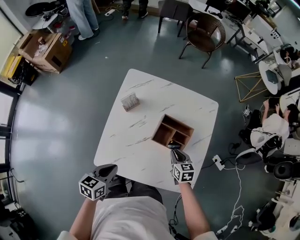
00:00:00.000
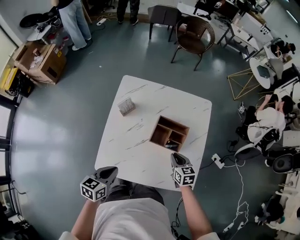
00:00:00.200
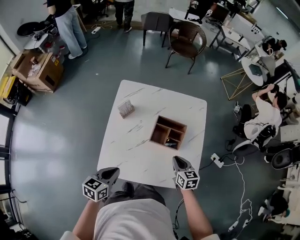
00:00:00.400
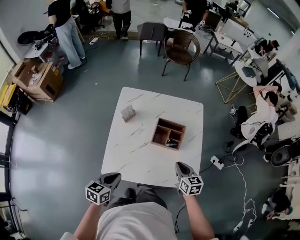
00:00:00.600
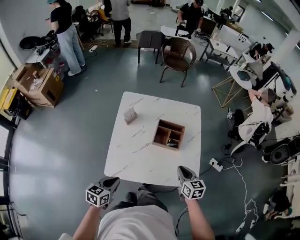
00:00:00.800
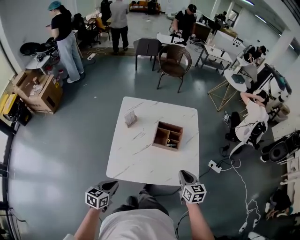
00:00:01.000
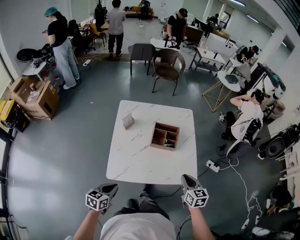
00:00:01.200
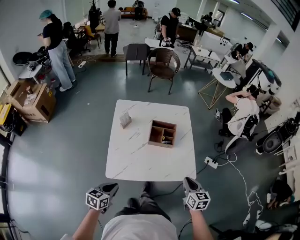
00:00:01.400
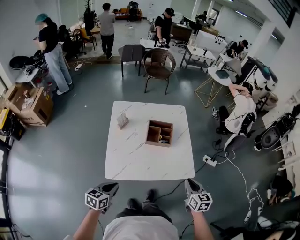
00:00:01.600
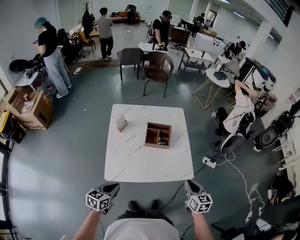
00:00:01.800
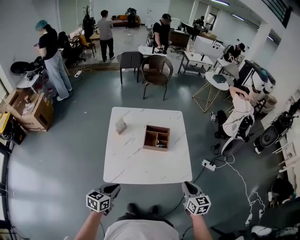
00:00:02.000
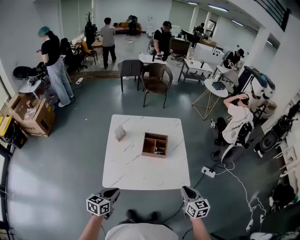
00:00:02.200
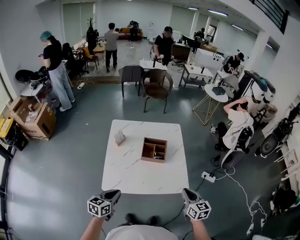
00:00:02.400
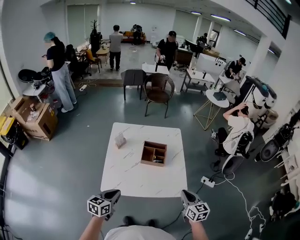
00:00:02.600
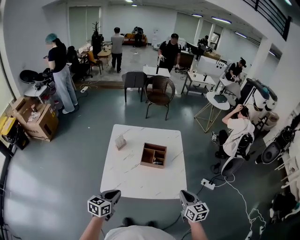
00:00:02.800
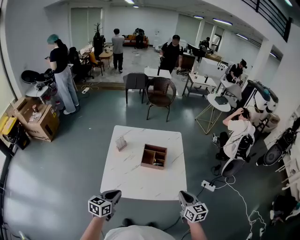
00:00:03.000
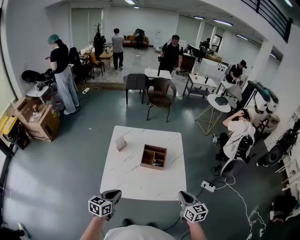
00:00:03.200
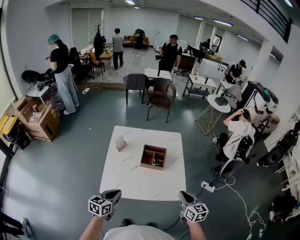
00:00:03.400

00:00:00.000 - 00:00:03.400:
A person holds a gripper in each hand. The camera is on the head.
00:00:00.000 - 00:00:01.600: The right gripper goes about 35 cm backward and upward, and turns by approximately 30 degrees. The left gripper moves backward, roughly 15 cm.
00:00:01.600 - 00:00:03.400: The left gripper goes about 10 cm to the right and upward; the right gripper ends up approximately 5 cm from where it was.

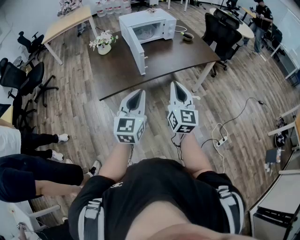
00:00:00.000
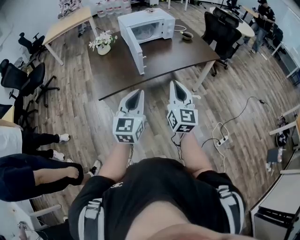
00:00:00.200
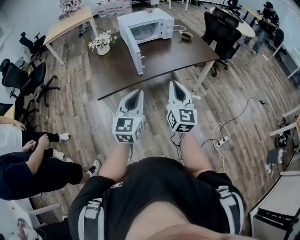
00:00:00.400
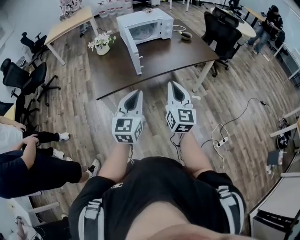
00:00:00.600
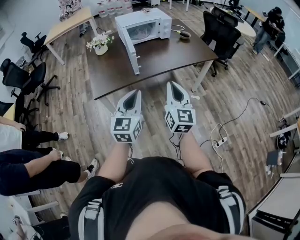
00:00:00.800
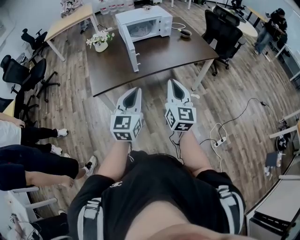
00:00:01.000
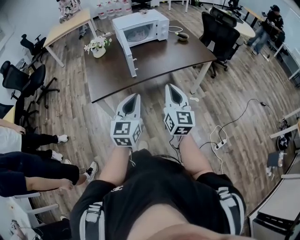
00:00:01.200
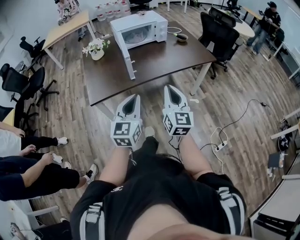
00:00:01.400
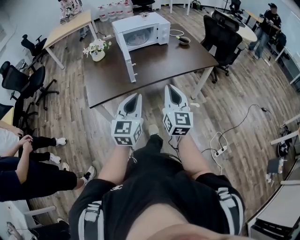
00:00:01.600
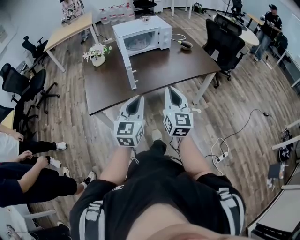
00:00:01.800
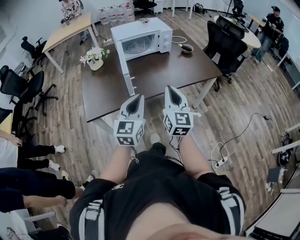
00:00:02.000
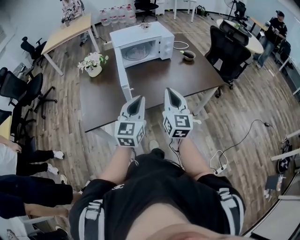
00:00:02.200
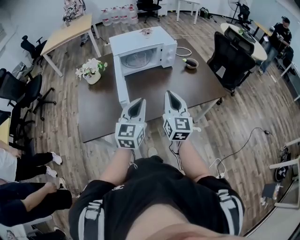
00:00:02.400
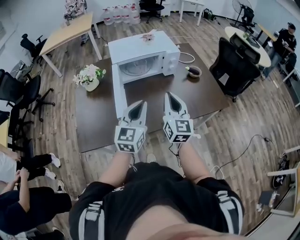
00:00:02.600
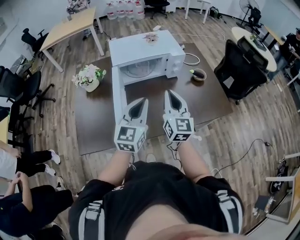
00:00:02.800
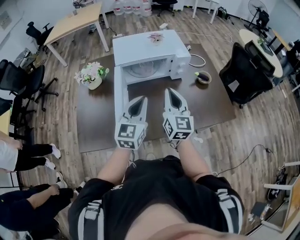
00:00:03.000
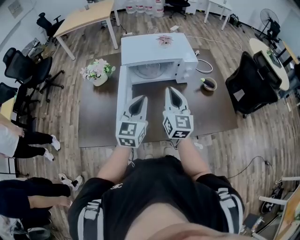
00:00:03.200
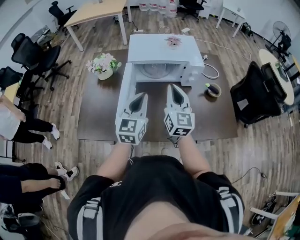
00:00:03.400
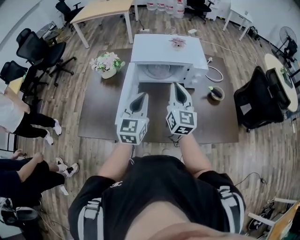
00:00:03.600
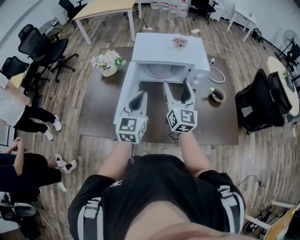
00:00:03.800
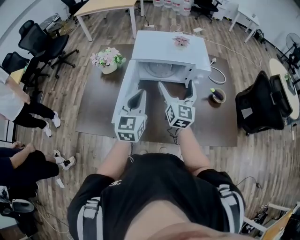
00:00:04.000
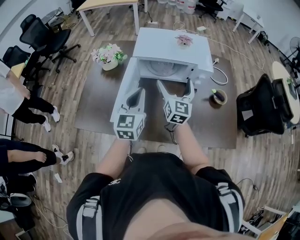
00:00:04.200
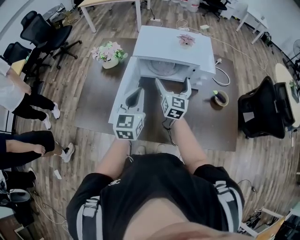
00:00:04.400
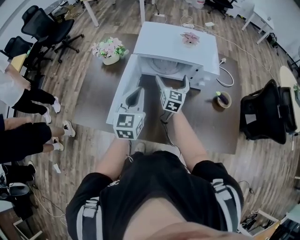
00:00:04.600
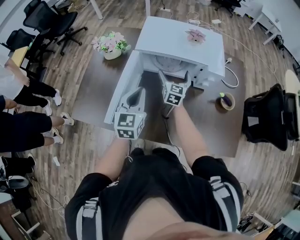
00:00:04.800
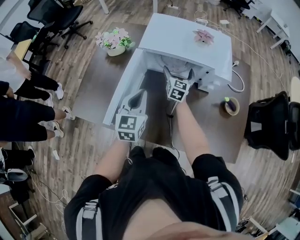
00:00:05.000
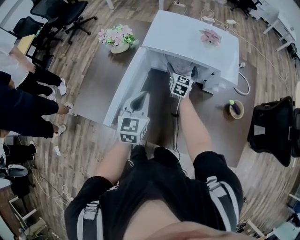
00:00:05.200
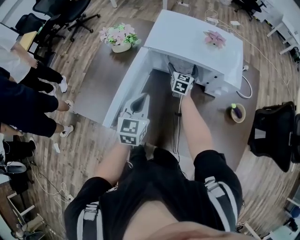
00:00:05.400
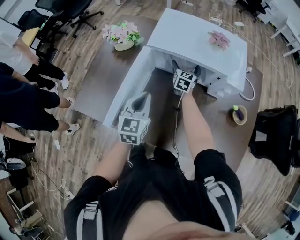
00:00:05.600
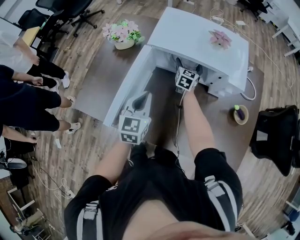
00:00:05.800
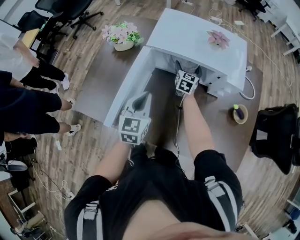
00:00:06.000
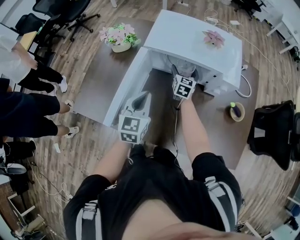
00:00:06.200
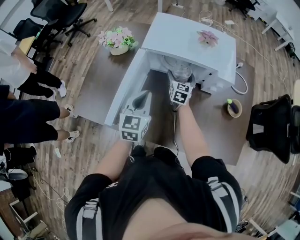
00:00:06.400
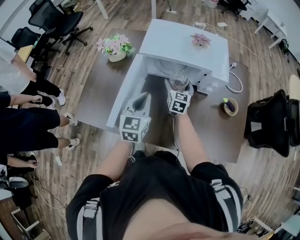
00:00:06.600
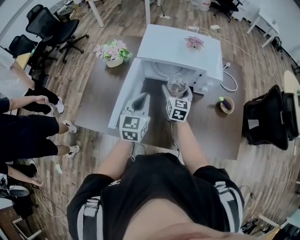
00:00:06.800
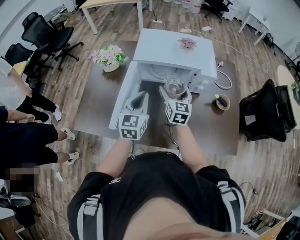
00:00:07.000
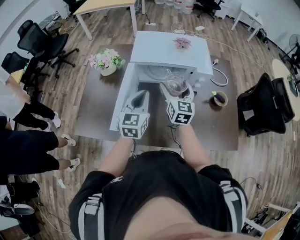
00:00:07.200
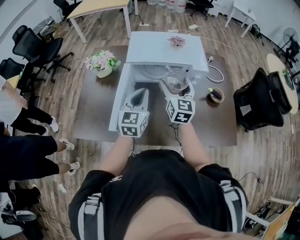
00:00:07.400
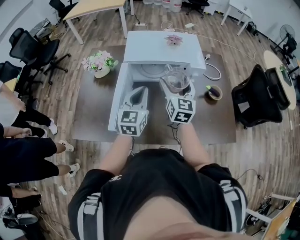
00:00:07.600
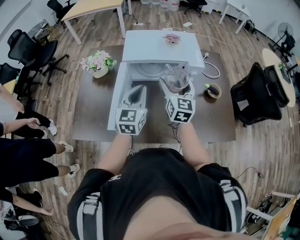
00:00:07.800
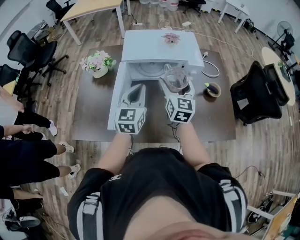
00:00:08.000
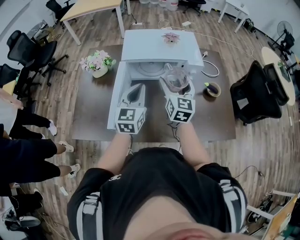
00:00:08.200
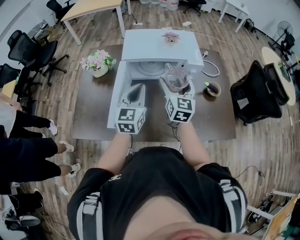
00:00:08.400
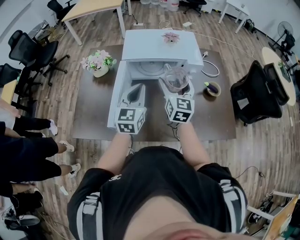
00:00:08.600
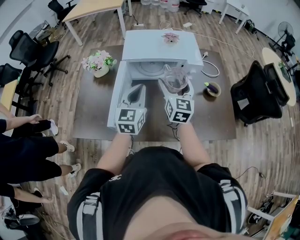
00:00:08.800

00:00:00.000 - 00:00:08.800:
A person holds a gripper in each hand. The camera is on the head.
00:00:00.000 - 00:00:01.400: The two grippers go about 10 cm to the right.
00:00:01.400 - 00:00:03.000: The pair of grippers is taken forward, about 50 cm.
00:00:03.000 - 00:00:04.400: The right gripper shifts about 20 cm forward and downward, and opens up. Meanwhile the left gripper moves forward, some 10 cm, and turns by about 20 degrees.
00:00:04.400 - 00:00:05.800: The right gripper travels forward and downward by roughly 30 cm; the left gripper goes roughly 10 cm downward and forward.
00:00:05.800 - 00:00:07.400: The right gripper goes about 35 cm backward and upward. The left gripper is displaced upward by about 10 cm.
00:00:07.400 - 00:00:08.800: The grippers stay close to where they were, moving slightly.

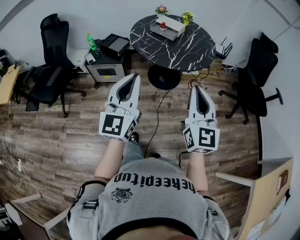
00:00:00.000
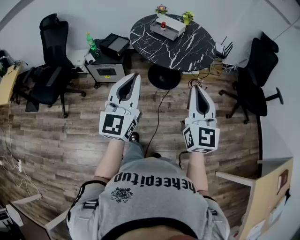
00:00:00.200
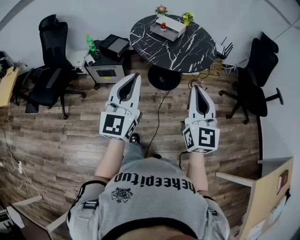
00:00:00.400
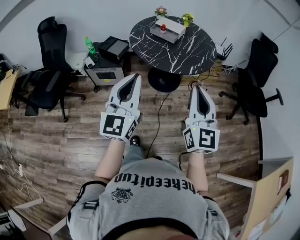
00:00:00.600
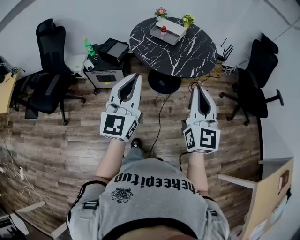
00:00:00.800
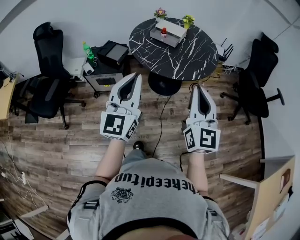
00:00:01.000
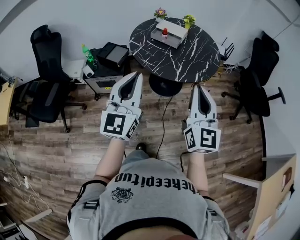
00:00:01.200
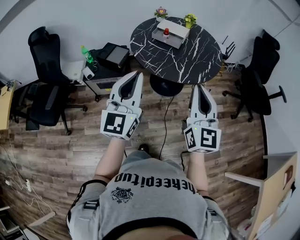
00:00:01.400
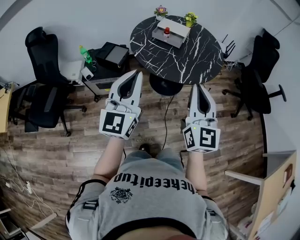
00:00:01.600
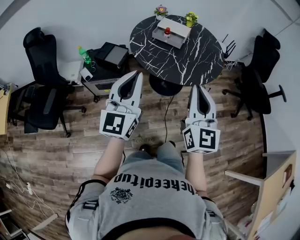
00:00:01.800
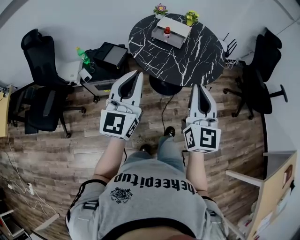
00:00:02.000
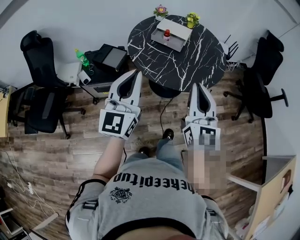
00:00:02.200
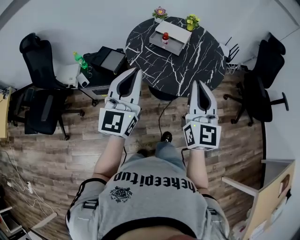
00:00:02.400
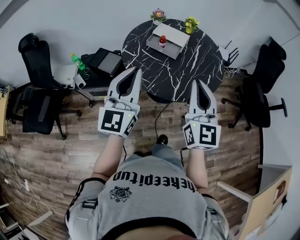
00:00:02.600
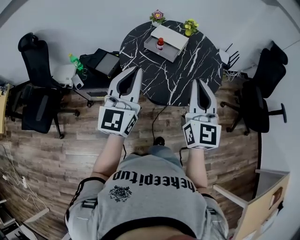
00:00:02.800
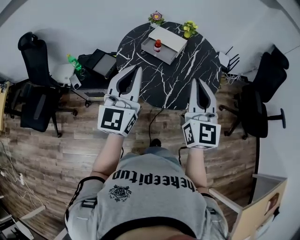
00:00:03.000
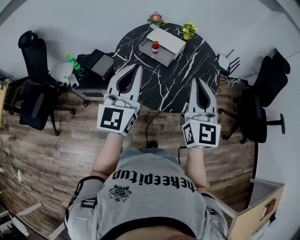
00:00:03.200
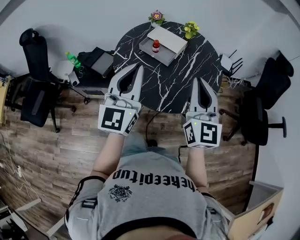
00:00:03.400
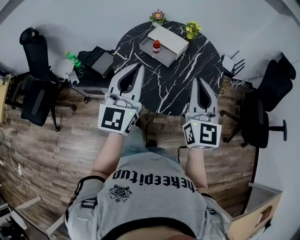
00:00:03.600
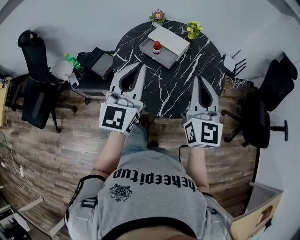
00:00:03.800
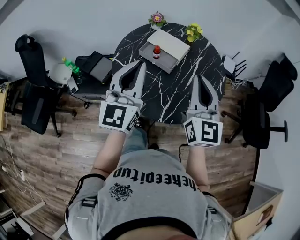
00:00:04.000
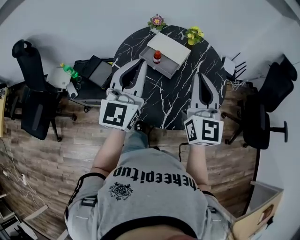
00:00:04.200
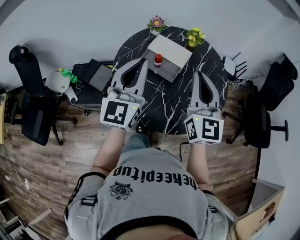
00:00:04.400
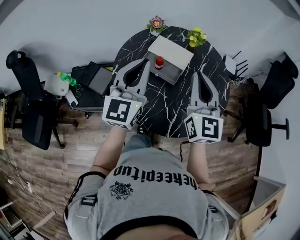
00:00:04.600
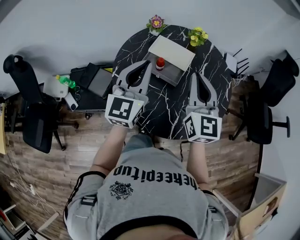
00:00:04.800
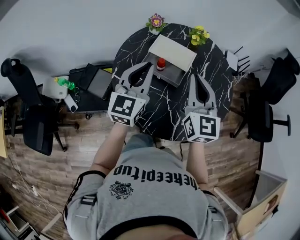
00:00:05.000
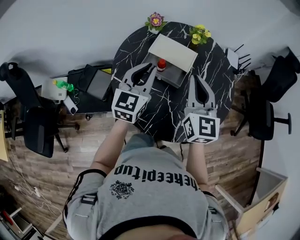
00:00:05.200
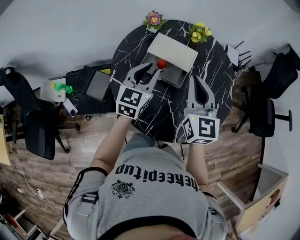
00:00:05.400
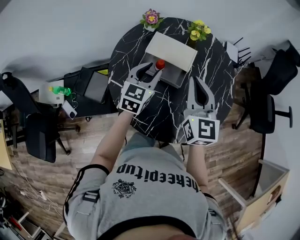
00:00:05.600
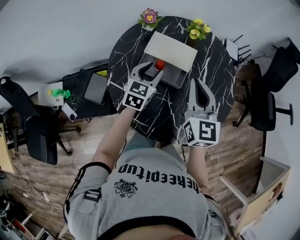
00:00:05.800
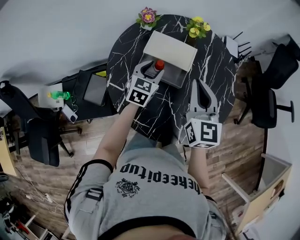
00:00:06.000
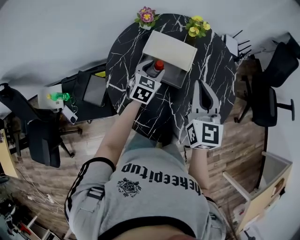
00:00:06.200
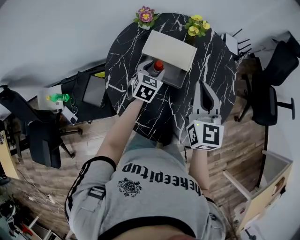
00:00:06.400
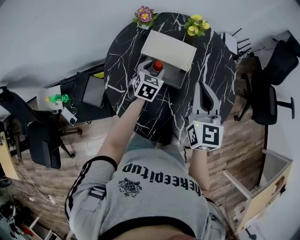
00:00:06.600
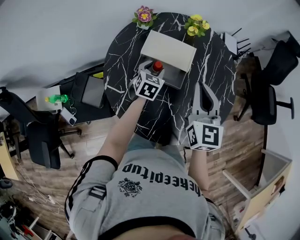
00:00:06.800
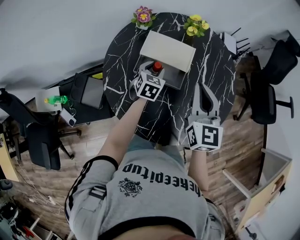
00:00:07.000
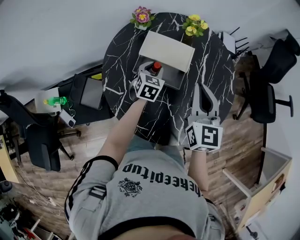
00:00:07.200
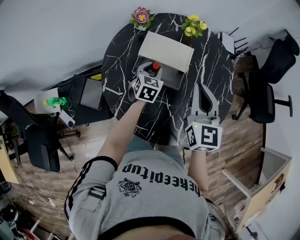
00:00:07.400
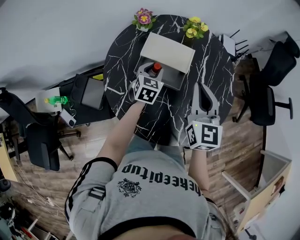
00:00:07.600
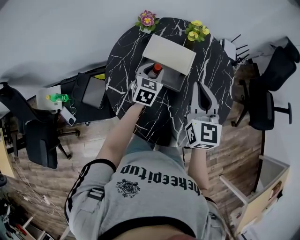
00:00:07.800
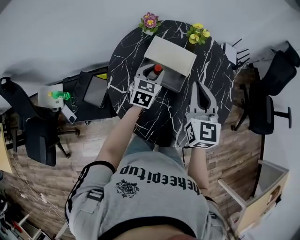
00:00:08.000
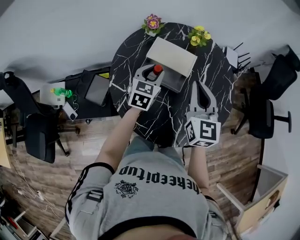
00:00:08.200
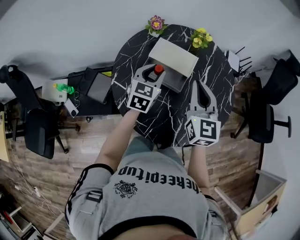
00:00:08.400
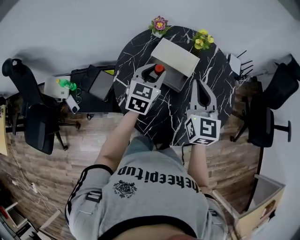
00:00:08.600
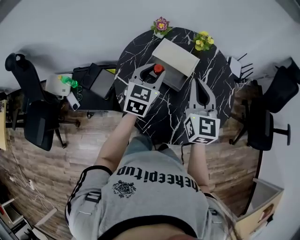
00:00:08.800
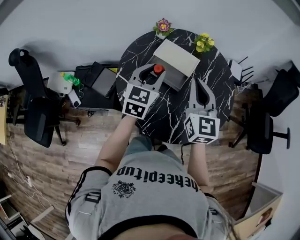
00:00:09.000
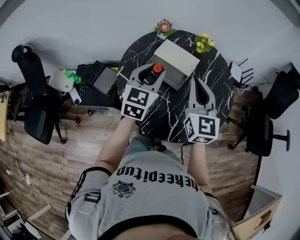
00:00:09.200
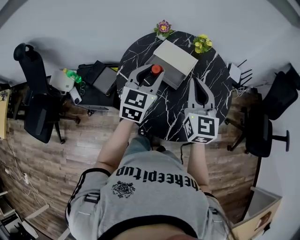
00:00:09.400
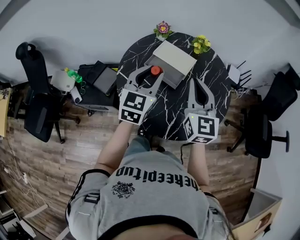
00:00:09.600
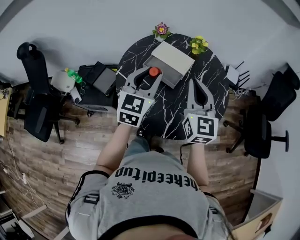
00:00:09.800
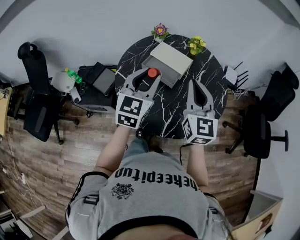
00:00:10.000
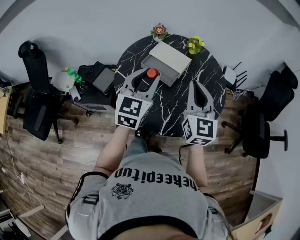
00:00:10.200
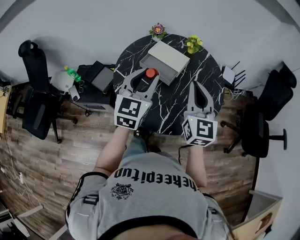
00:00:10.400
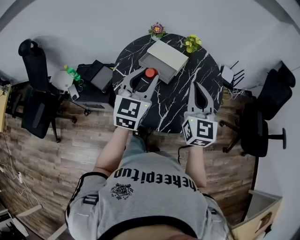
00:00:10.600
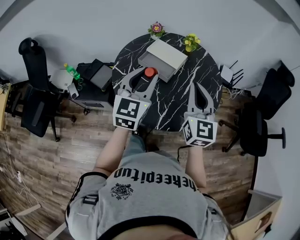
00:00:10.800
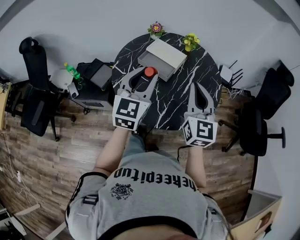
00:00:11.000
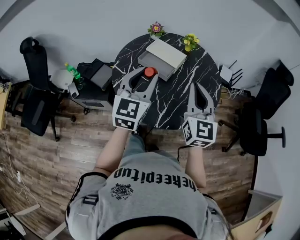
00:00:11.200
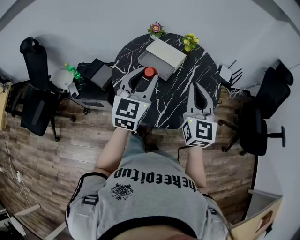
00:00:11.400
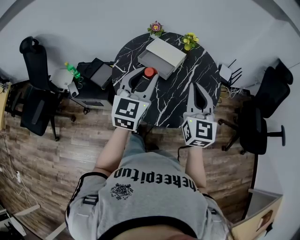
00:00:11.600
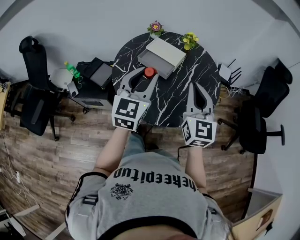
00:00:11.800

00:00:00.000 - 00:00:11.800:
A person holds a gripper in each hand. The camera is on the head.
00:00:00.000 - 00:00:01.400: The two grippers go roughly 20 cm forward and to the left.
00:00:01.400 - 00:00:03.000: The grippers both shift forward by approximately 25 cm.
00:00:03.000 - 00:00:04.400: Both grippers travel together forward, some 20 cm.
00:00:04.400 - 00:00:06.000: The right gripper is displaced forward and downward by about 15 cm, while the left gripper heads downward and forward, covering roughly 35 cm, tips its fingers downward by some 40 degrees, and opens its fingers.
00:00:06.000 - 00:00:07.400: The left gripper moves downward, some 5 cm.
00:00:07.400 - 00:00:08.800: The left gripper travels upward and backward by some 20 cm. Meanwhile the right gripper moves upward, approximately 5 cm.
00:00:08.800 - 00:00:10.400: The left gripper heads backward and upward, covering roughly 20 cm, while the right gripper goes some 15 cm backward and to the right.
00:00:10.400 - 00:00:11.800: Both grippers travel together backward, about 5 cm.
